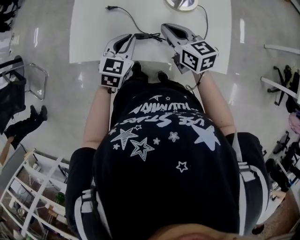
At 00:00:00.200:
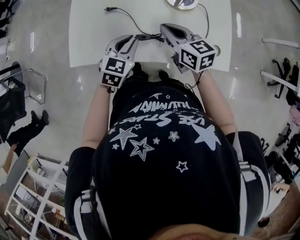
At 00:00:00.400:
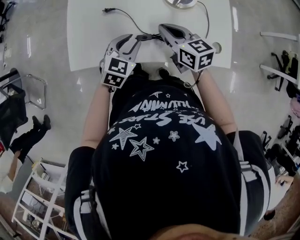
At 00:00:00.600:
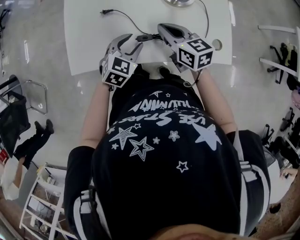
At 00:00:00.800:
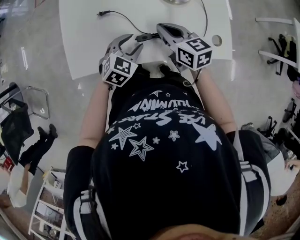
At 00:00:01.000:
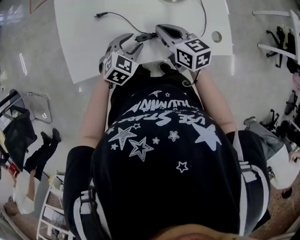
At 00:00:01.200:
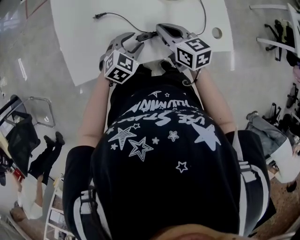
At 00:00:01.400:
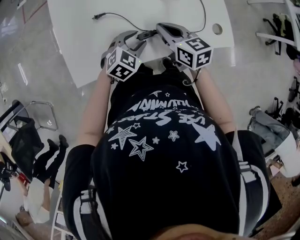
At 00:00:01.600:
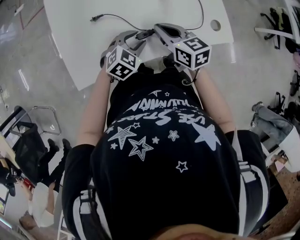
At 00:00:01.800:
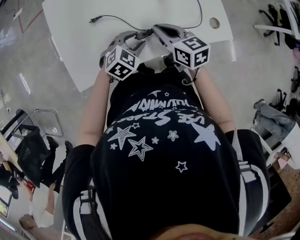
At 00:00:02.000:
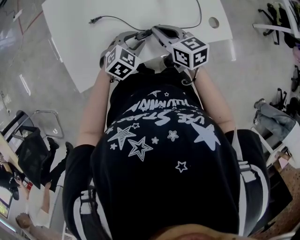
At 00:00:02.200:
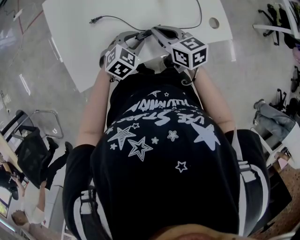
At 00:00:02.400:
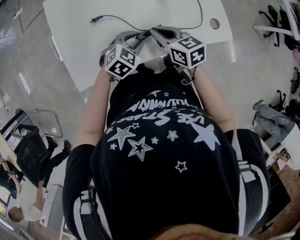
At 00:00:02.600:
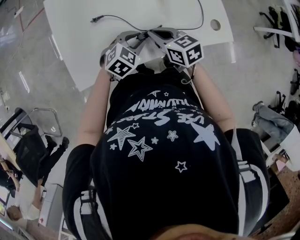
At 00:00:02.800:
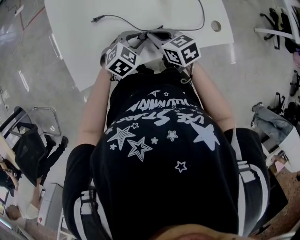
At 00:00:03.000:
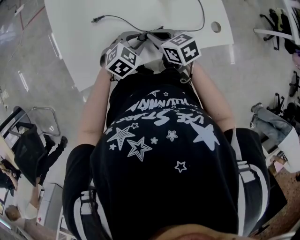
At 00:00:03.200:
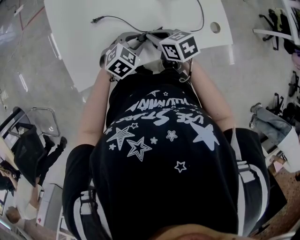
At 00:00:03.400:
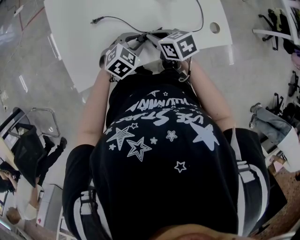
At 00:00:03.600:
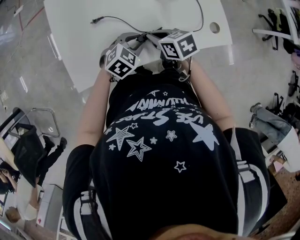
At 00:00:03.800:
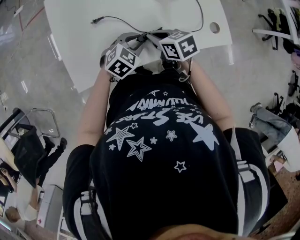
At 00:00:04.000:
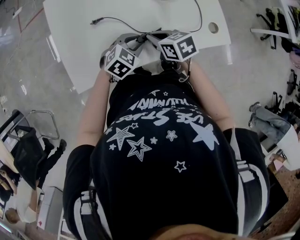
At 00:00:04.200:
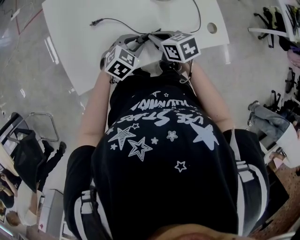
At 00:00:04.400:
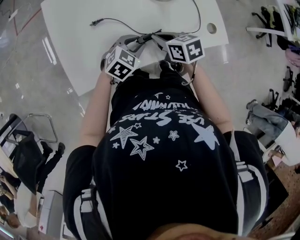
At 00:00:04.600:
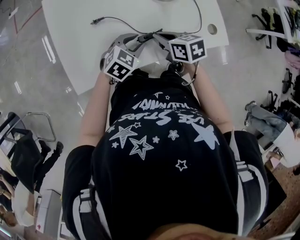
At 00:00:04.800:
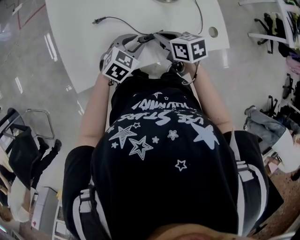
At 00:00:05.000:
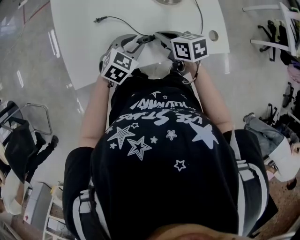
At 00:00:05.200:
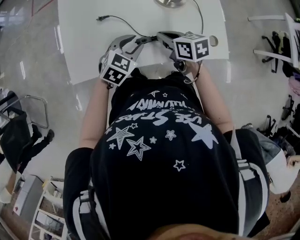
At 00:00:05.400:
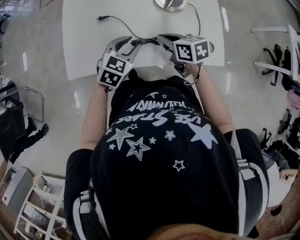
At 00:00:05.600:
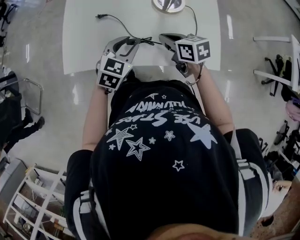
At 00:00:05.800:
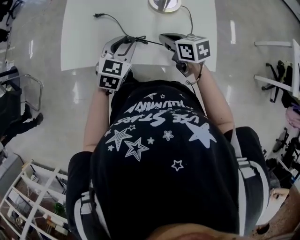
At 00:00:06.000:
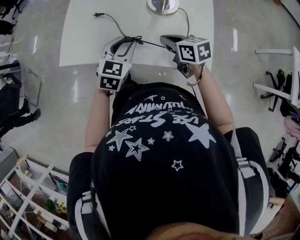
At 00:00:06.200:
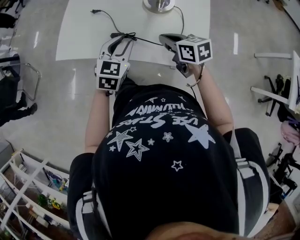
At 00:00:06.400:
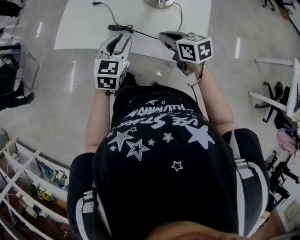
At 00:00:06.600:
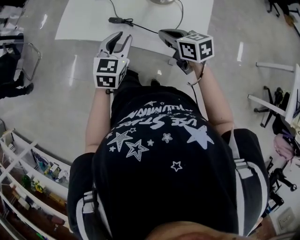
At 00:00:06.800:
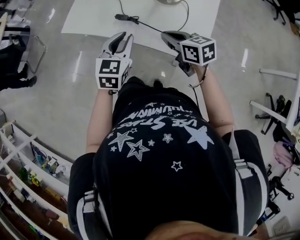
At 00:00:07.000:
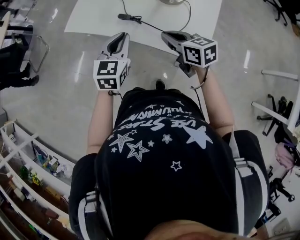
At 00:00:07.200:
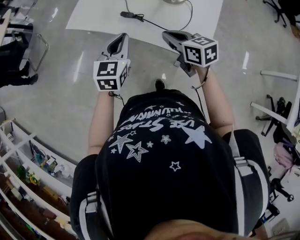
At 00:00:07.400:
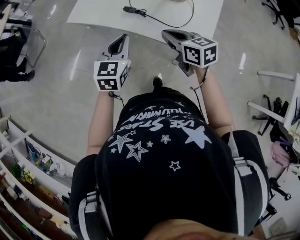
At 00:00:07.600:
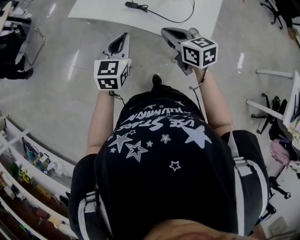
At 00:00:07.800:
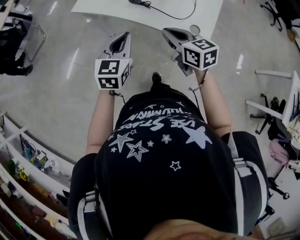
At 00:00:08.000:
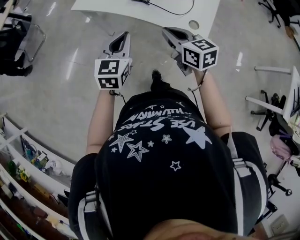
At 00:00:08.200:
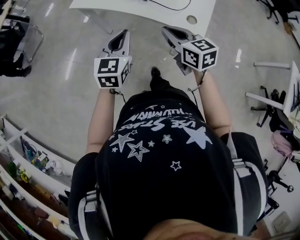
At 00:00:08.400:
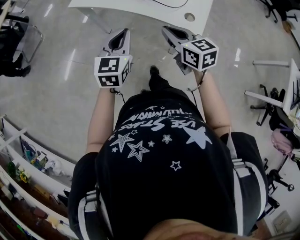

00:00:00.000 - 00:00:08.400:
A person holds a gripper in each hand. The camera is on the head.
00:00:00.000 - 00:00:01.400: The left gripper is displaced downward by some 10 cm, turns by about 40 degrees, and opens its fingers, while the right gripper shifts by approximately 5 cm.
00:00:01.400 - 00:00:02.800: The right gripper moves about 5 cm.
00:00:02.800 - 00:00:04.200: There are only small adjustments of the grippers.
00:00:04.200 - 00:00:05.600: The left gripper moves upward, roughly 10 cm, and turns by about 30 degrees. Meanwhile the right gripper is displaced to the right by roughly 5 cm.
00:00:05.600 - 00:00:07.000: The left gripper ends up about 15 cm from where it was, turns by approximately 40 degrees, and closes. The right gripper ends up approximately 15 cm from where it was, and turns by some 30 degrees.
00:00:07.000 - 00:00:08.400: Both grippers move backward and to the left, some 15 cm.

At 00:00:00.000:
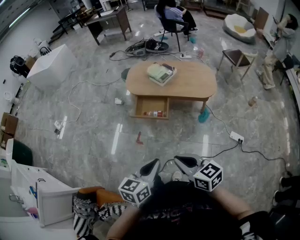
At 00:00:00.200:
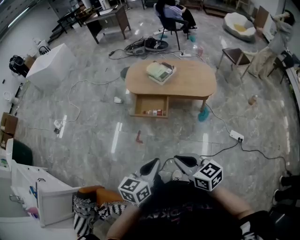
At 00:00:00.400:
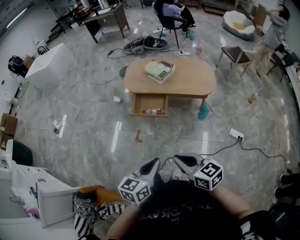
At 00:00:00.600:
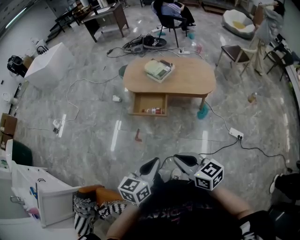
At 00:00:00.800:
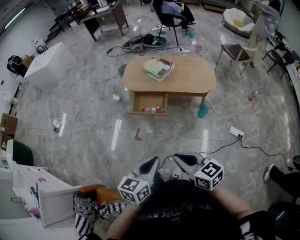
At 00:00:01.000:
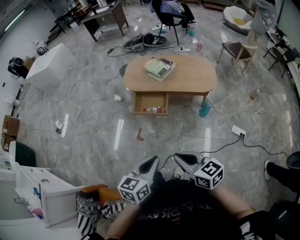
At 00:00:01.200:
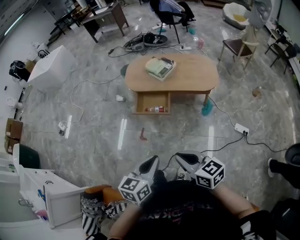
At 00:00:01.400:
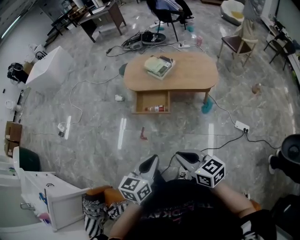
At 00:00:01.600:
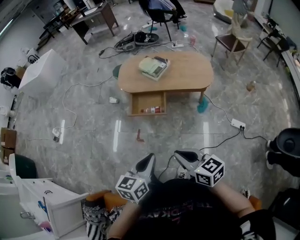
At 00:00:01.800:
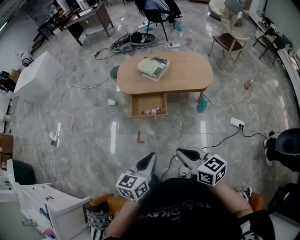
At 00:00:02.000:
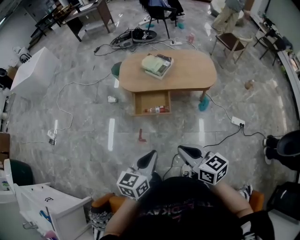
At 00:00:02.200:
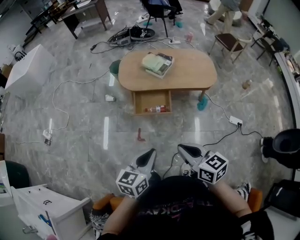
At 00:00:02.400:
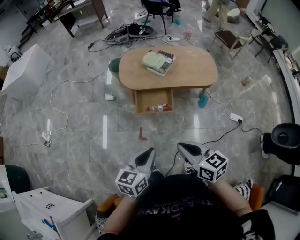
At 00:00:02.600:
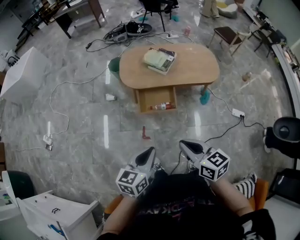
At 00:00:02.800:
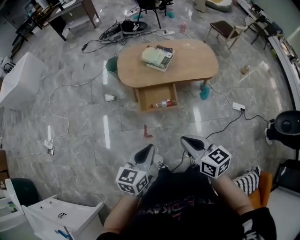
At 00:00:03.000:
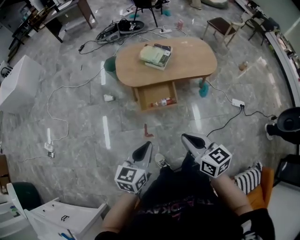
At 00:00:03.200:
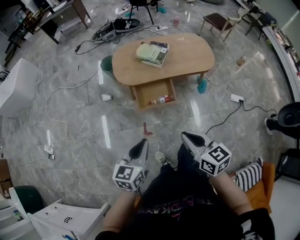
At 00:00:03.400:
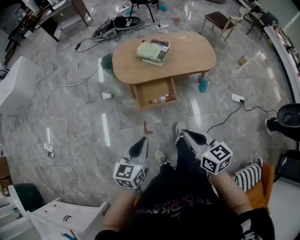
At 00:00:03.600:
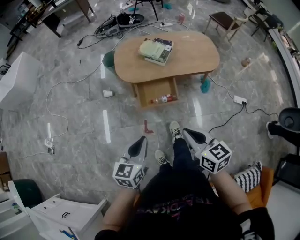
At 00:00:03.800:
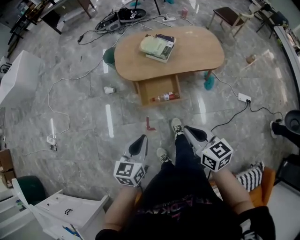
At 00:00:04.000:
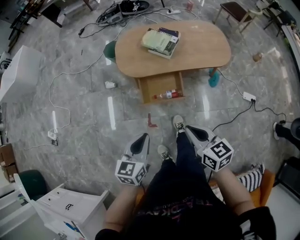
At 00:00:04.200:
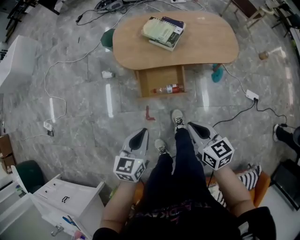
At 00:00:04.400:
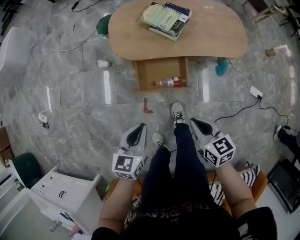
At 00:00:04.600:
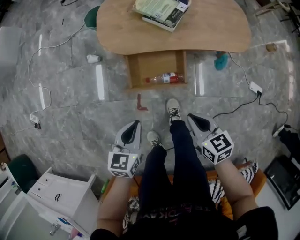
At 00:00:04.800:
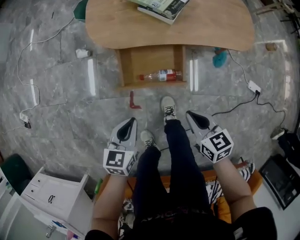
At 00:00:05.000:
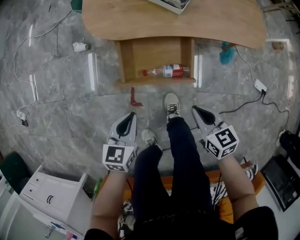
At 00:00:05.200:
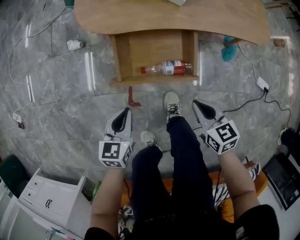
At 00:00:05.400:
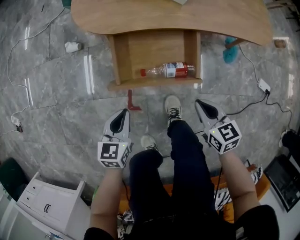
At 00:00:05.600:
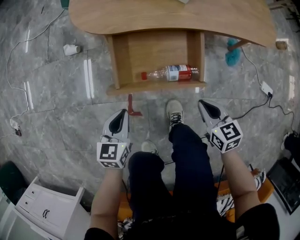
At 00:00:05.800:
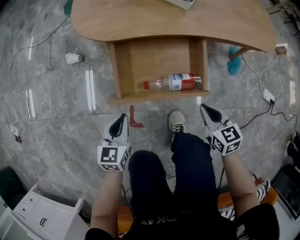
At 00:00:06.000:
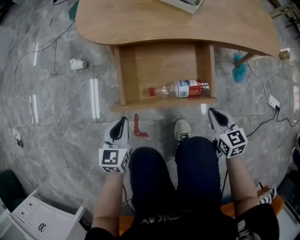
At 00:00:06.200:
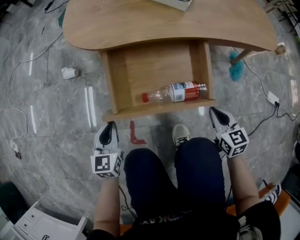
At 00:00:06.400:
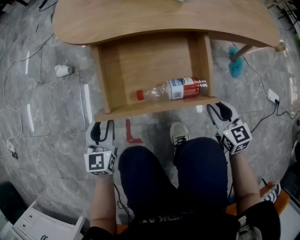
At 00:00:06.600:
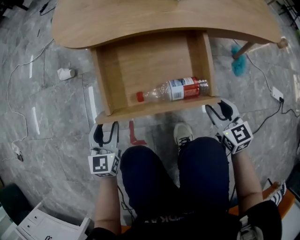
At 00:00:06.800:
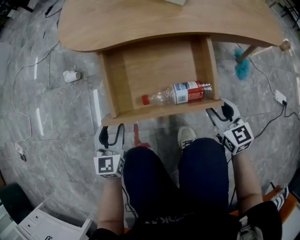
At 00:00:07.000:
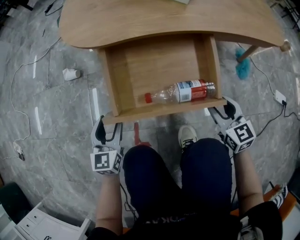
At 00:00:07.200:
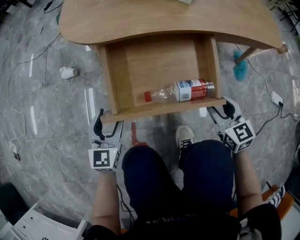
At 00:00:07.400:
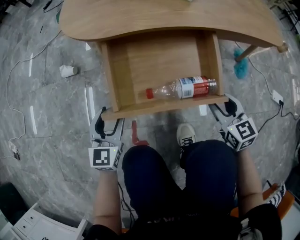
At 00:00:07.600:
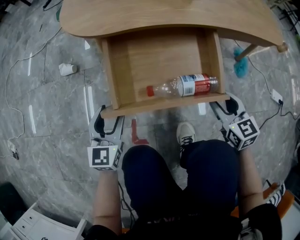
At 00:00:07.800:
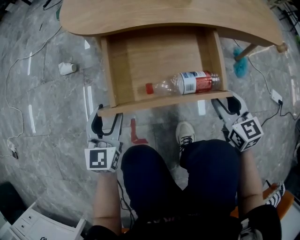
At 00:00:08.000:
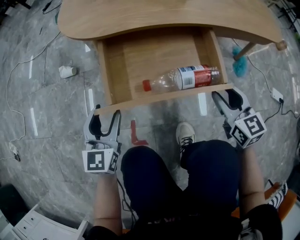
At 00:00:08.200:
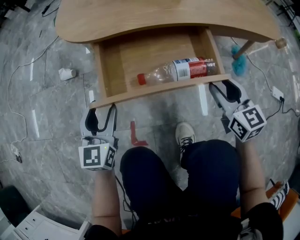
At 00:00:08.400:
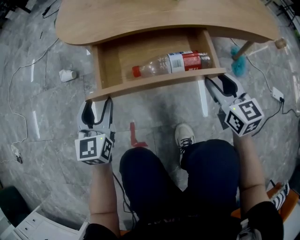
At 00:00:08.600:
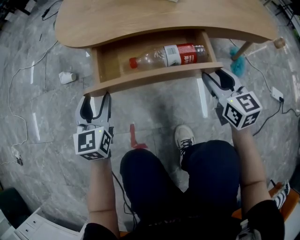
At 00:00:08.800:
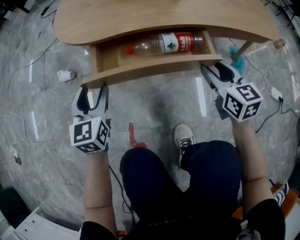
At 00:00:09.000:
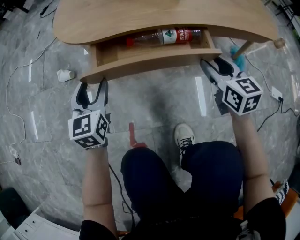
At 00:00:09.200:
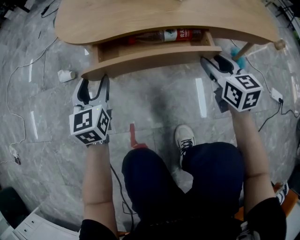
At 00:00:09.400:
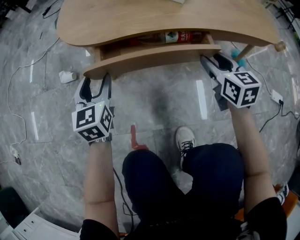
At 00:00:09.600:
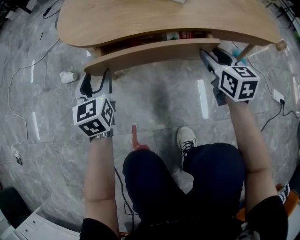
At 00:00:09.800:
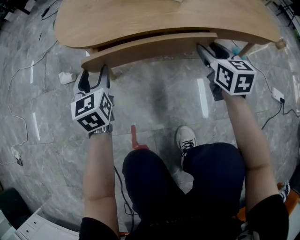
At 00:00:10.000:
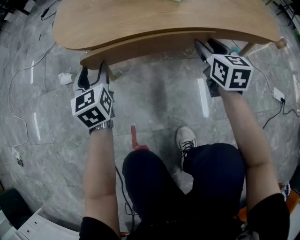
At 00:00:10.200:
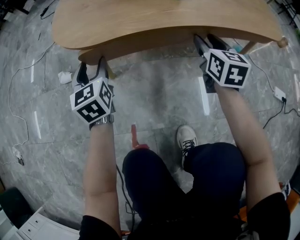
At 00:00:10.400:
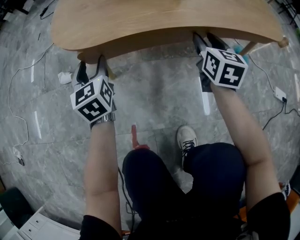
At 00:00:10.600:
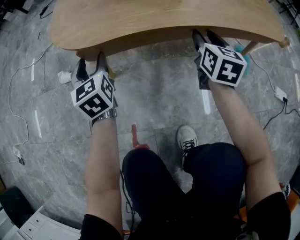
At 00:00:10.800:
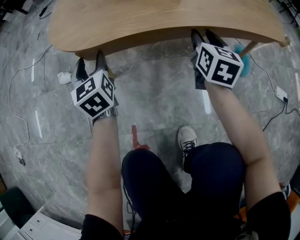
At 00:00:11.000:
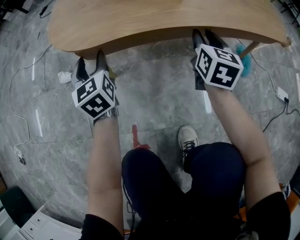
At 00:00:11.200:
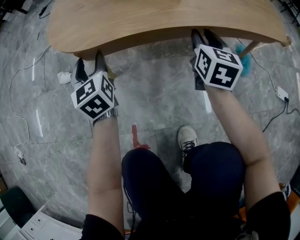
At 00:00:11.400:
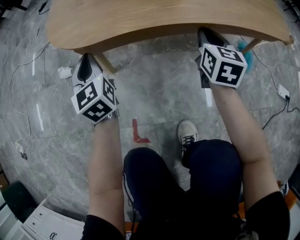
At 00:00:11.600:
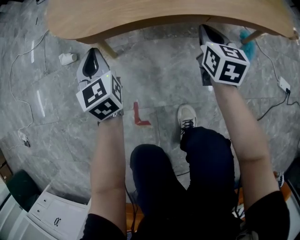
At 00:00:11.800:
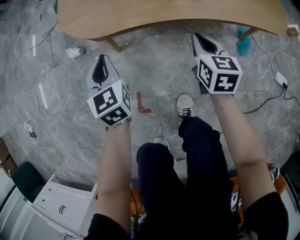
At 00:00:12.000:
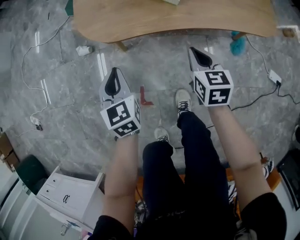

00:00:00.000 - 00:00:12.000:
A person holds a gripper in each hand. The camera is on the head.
00:00:00.000 - 00:00:01.600: Both grippers travel together forward, approximately 5 cm.
00:00:01.600 - 00:00:03.000: Both grippers travel together to the left and forward, some 30 cm. The right gripper rotates some 20 degrees.
00:00:03.000 - 00:00:04.400: The two grippers go roughly 25 cm downward and forward.
00:00:04.400 - 00:00:06.000: The grippers both shift downward by some 50 cm.
00:00:06.000 - 00:00:07.600: The left gripper moves forward, some 5 cm, and opens its fingers. The right gripper opens.
00:00:07.600 - 00:00:09.000: Both grippers travel together forward, approximately 10 cm.
00:00:09.000 - 00:00:10.400: The two grippers go approximately 10 cm forward.
00:00:10.400 - 00:00:12.000: The left gripper travels upward and backward by about 20 cm, and closes. Meanwhile the right gripper travels upward, backward and to the left by about 15 cm, swivels approximately 20 degrees, and closes up.

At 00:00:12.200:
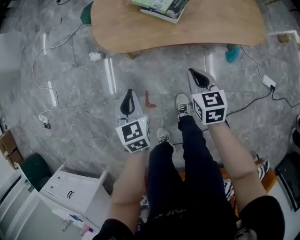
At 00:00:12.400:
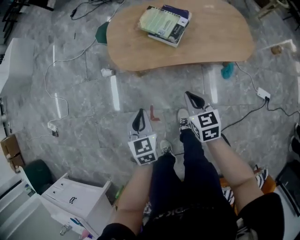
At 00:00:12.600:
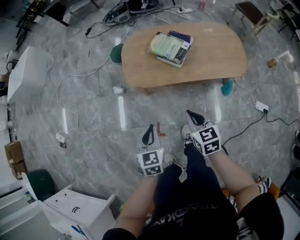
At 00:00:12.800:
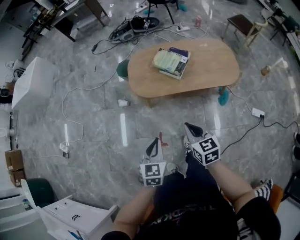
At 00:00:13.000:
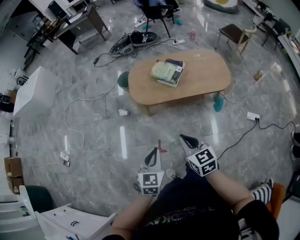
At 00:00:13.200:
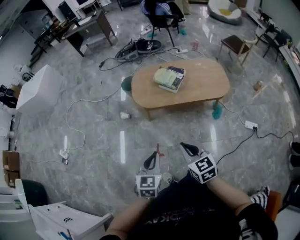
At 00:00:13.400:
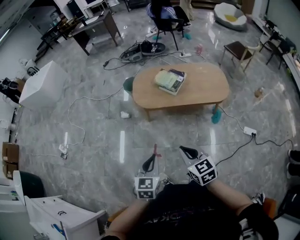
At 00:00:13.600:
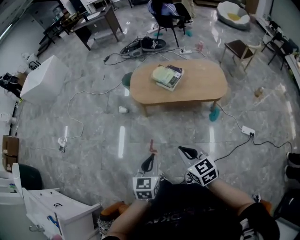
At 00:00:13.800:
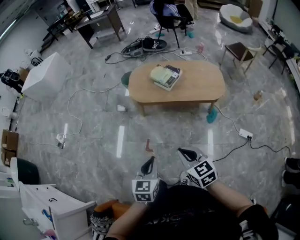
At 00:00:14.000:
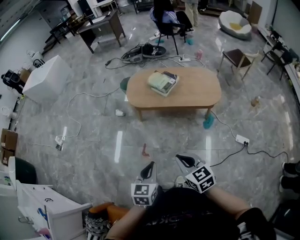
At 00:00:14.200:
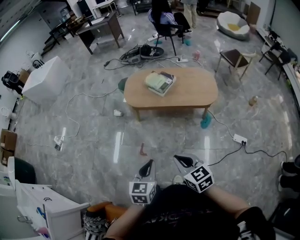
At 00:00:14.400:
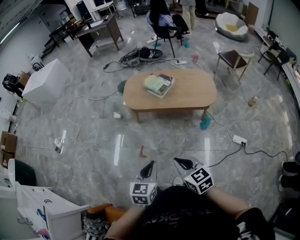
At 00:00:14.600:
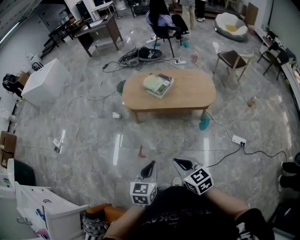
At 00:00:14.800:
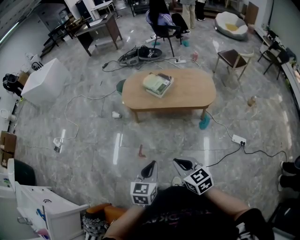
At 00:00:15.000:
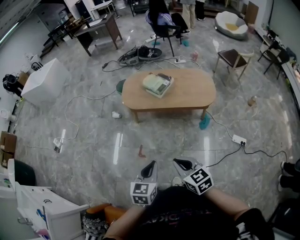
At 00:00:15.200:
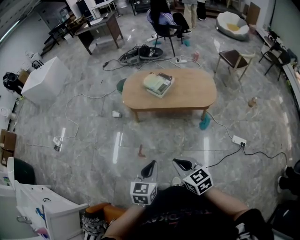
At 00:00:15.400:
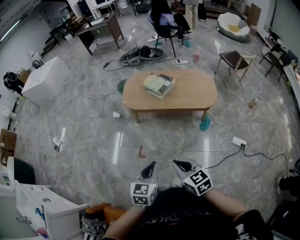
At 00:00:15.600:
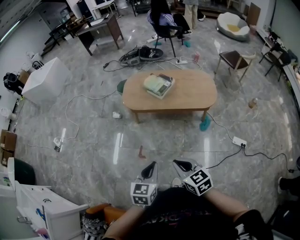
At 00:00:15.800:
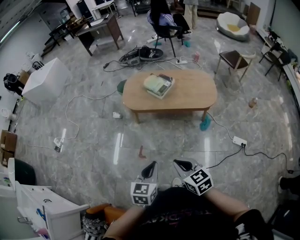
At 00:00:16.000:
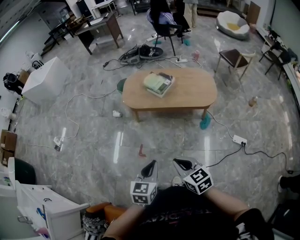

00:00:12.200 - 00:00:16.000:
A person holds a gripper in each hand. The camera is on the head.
00:00:12.200 - 00:00:13.400: Both grippers travel together upward and backward, approximately 50 cm. The right gripper rotates some 20 degrees.
00:00:13.400 - 00:00:14.800: The right gripper moves backward and to the right, some 15 cm; the left gripper is displaced to the right and backward by some 20 cm.
00:00:14.800 - 00:00:16.000: The grippers make only small movements.
